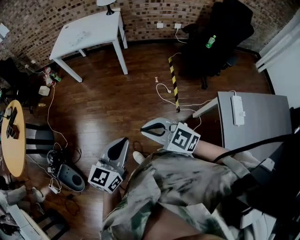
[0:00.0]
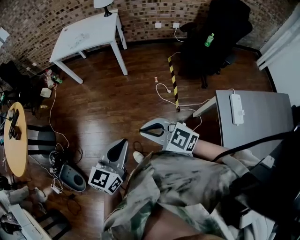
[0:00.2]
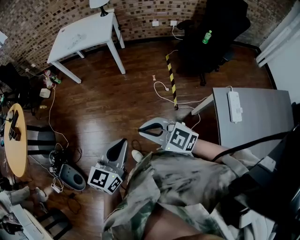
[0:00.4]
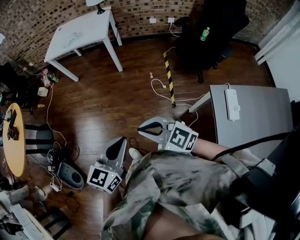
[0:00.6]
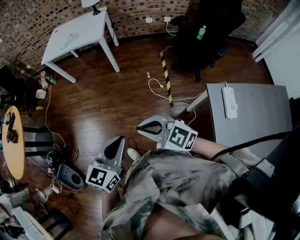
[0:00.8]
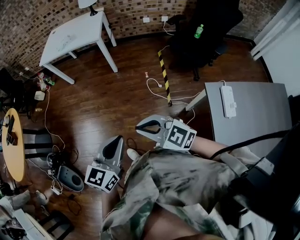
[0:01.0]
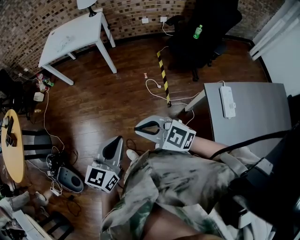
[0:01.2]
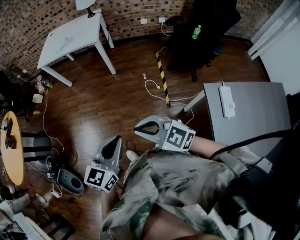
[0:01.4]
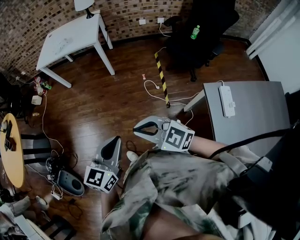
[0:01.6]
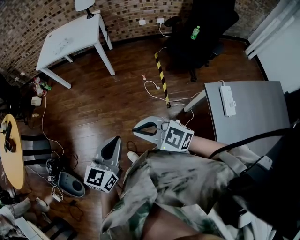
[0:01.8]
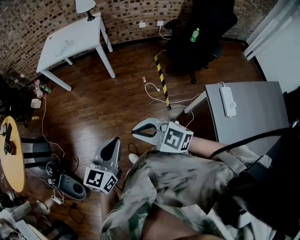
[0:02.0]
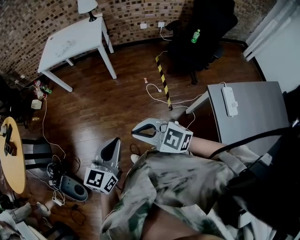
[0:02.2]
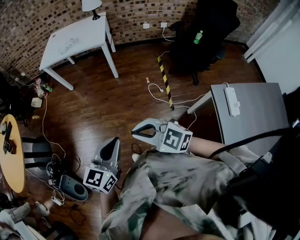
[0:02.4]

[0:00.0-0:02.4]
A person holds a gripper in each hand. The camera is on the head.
0:00.0 to 0:01.2: Both grippers move to the right, some 10 cm.
0:01.2 to 0:02.4: Both grippers travel together to the left, roughly 10 cm.

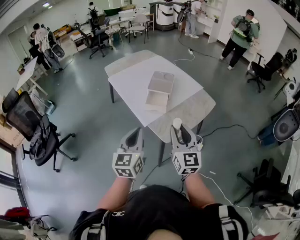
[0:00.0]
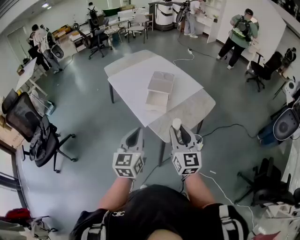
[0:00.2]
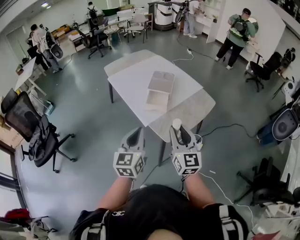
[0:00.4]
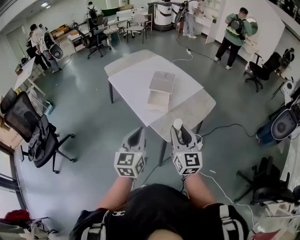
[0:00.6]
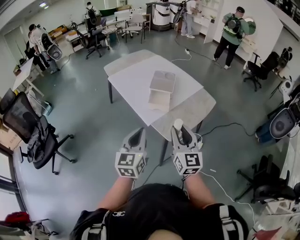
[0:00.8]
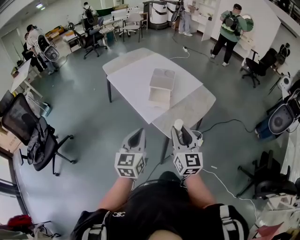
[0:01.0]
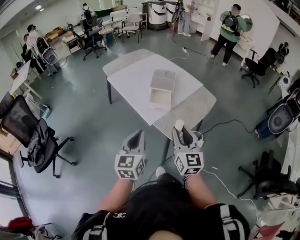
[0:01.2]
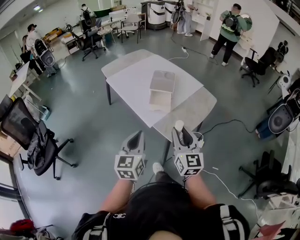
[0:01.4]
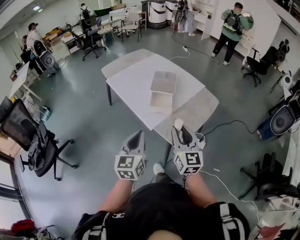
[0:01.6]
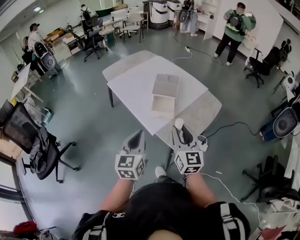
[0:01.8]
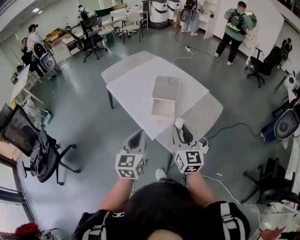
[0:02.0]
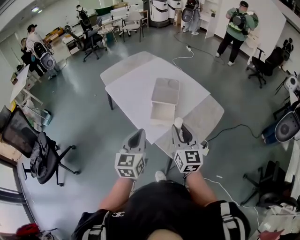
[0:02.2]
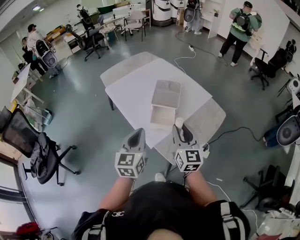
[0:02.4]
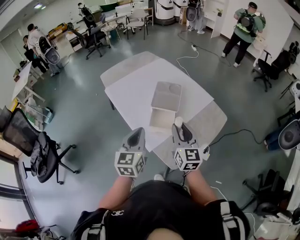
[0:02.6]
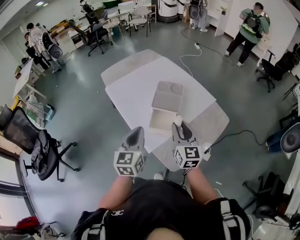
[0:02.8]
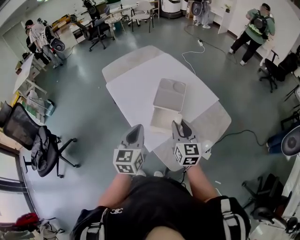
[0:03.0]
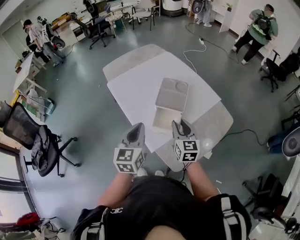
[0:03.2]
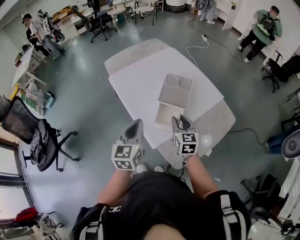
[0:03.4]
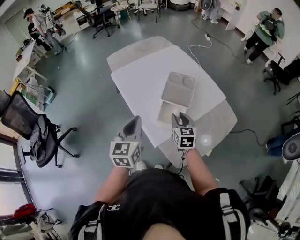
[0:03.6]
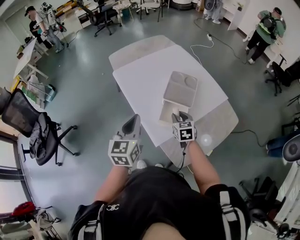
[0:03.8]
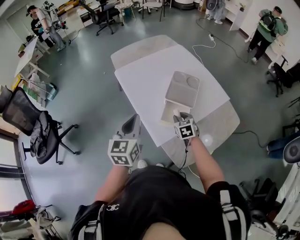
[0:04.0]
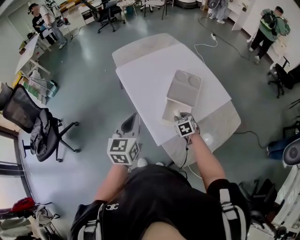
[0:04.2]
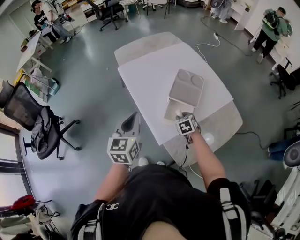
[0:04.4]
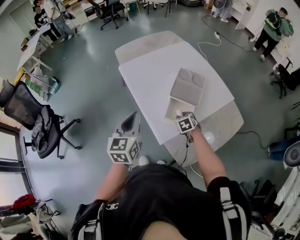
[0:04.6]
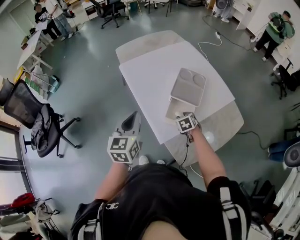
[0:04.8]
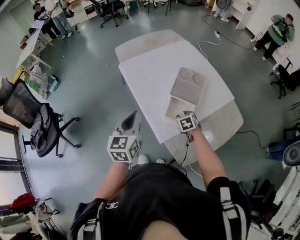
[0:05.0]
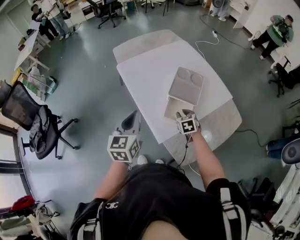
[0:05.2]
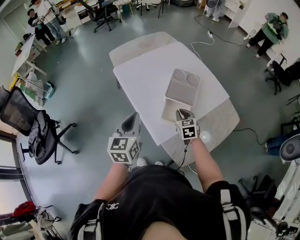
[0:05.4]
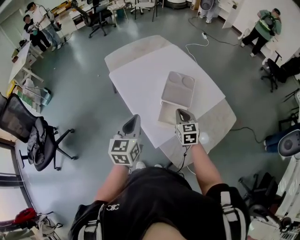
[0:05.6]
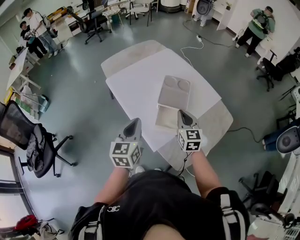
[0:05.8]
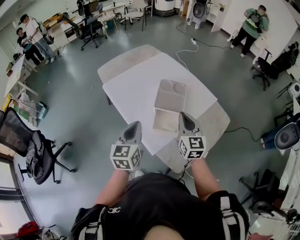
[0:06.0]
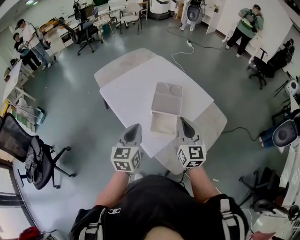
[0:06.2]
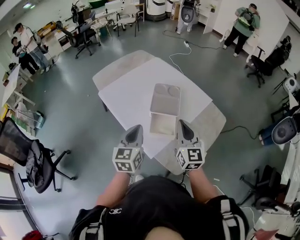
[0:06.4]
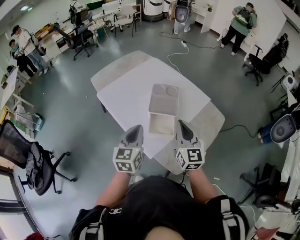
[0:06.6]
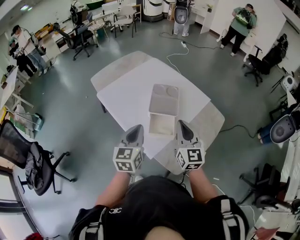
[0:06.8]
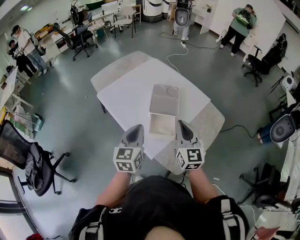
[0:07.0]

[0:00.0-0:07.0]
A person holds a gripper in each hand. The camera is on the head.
0:00.0 to 0:01.4: The two grippers go roughly 5 cm to the left.
0:01.4 to 0:02.8: The two grippers go approximately 25 cm forward.
0:02.8 to 0:04.2: The left gripper goes about 10 cm to the left. Meanwhile the right gripper is displaced downward and forward by some 25 cm, and angles its fingers downward, by roughly 40 degrees.
0:04.2 to 0:05.6: The right gripper shifts about 10 cm upward, rotates approximately 30 degrees, and closes its fingers.
0:05.6 to 0:07.0: The right gripper heads upward and backward, covering approximately 15 cm, and changes its angle by about 30 degrees, while the left gripper shifts approximately 5 cm to the right.

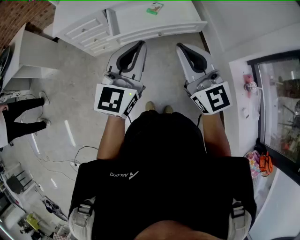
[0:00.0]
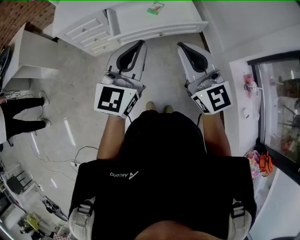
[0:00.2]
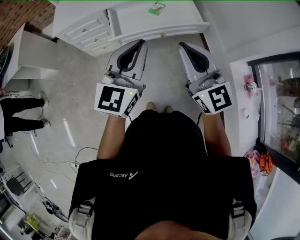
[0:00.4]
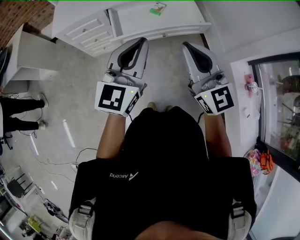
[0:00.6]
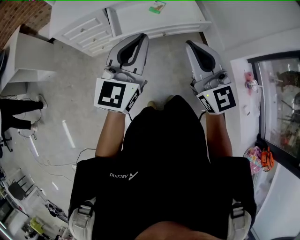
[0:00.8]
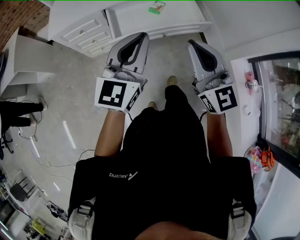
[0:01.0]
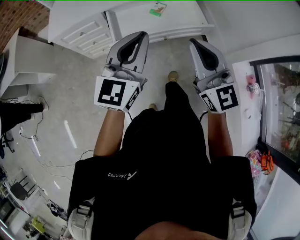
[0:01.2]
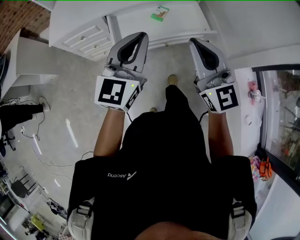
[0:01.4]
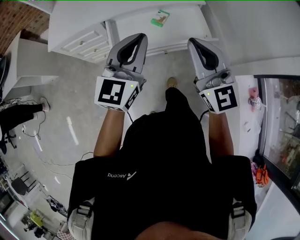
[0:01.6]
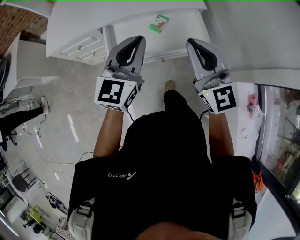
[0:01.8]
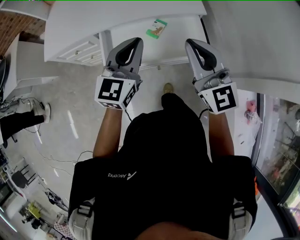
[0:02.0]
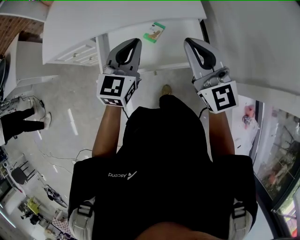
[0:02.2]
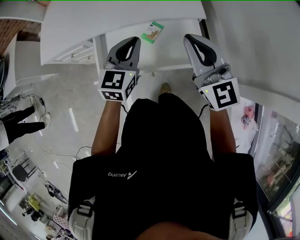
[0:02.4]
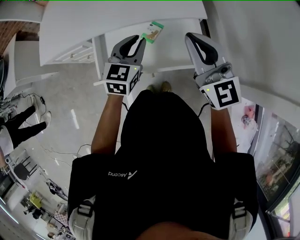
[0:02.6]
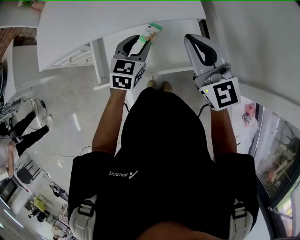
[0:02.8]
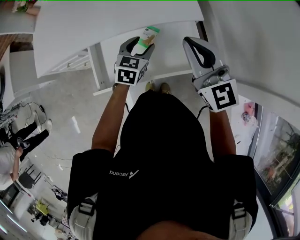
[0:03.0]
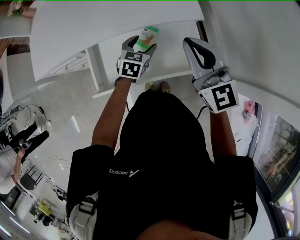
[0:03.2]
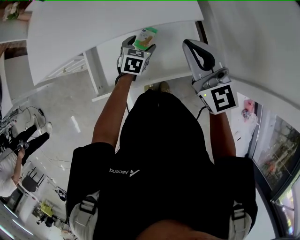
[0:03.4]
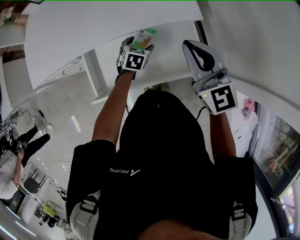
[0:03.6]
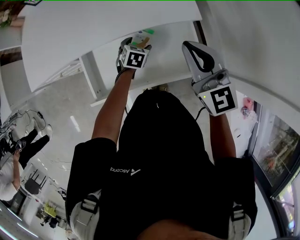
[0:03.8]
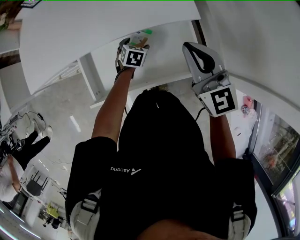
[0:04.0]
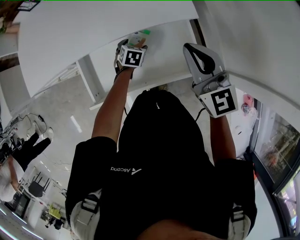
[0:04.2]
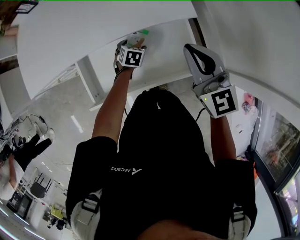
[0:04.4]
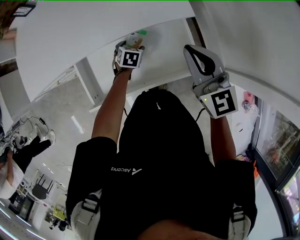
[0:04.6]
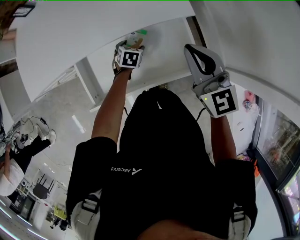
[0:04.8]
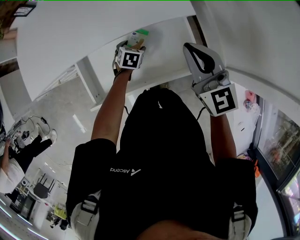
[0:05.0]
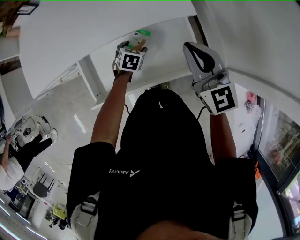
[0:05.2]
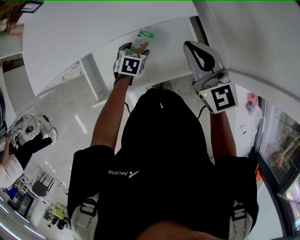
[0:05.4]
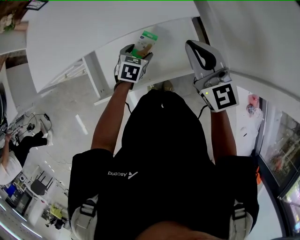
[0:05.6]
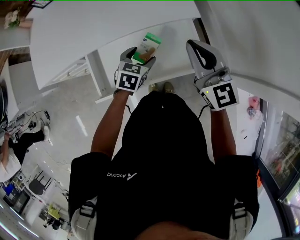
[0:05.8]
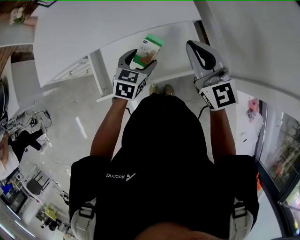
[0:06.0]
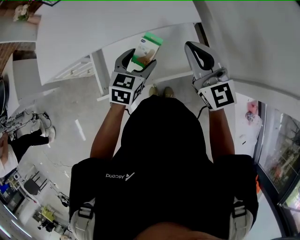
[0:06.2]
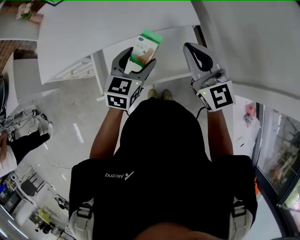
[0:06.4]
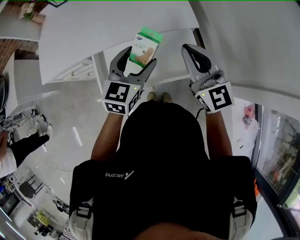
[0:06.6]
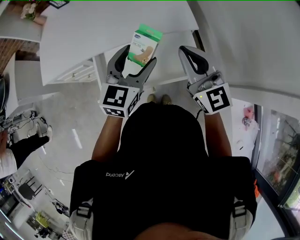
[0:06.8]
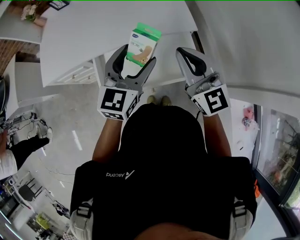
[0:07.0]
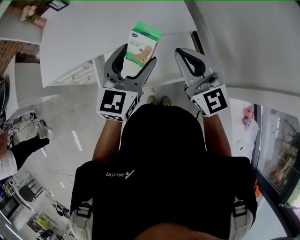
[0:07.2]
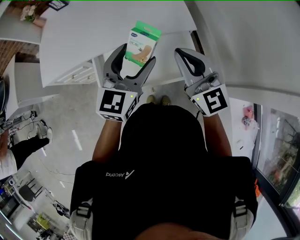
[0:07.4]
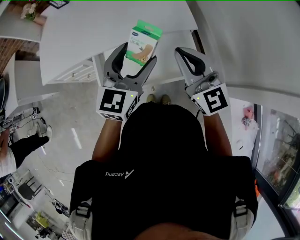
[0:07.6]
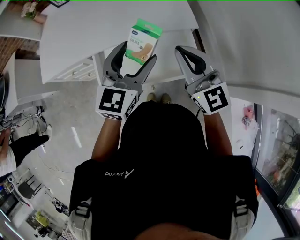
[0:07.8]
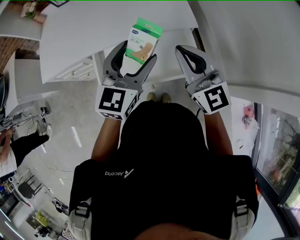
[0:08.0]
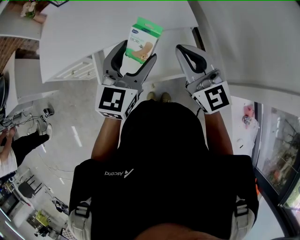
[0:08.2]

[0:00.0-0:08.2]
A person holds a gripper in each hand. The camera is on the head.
0:00.0 to 0:01.6: The grippers both shift forward by roughly 20 cm.
0:01.6 to 0:03.2: The right gripper shifts about 25 cm forward. Meanwhile the left gripper moves downward and forward, about 40 cm, angles its fingers downward, by some 40 degrees, and opens its fingers.
0:03.2 to 0:05.0: The right gripper shifts some 5 cm downward; the left gripper travels downward by some 15 cm, and changes its angle by about 20 degrees.
0:05.0 to 0:06.6: The right gripper heads upward and backward, covering approximately 10 cm. Meanwhile the left gripper heads upward, covering approximately 35 cm, and angles its fingers upward, by roughly 40 degrees.
0:06.6 to 0:08.2: The left gripper travels upward by about 5 cm.

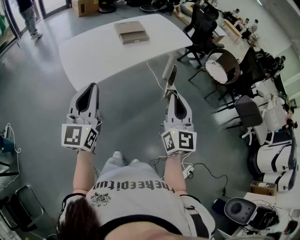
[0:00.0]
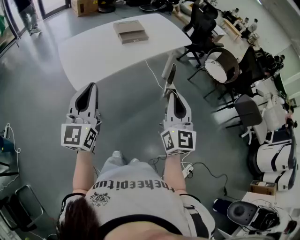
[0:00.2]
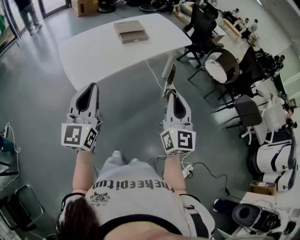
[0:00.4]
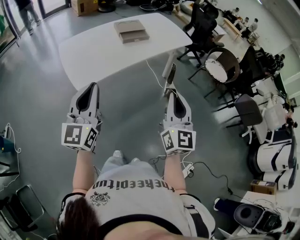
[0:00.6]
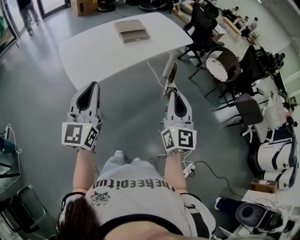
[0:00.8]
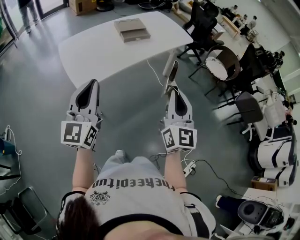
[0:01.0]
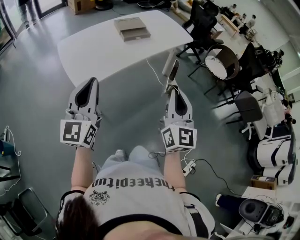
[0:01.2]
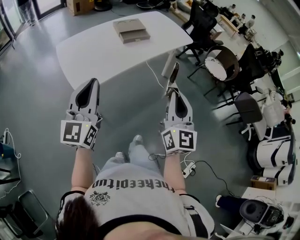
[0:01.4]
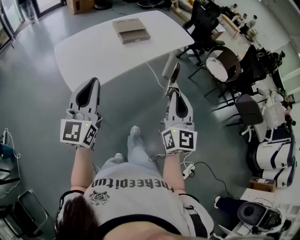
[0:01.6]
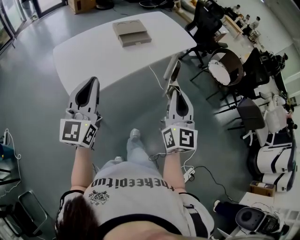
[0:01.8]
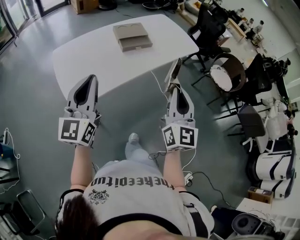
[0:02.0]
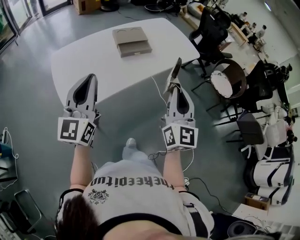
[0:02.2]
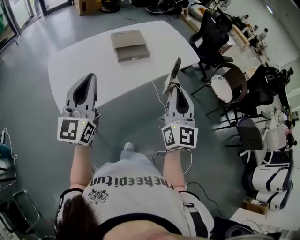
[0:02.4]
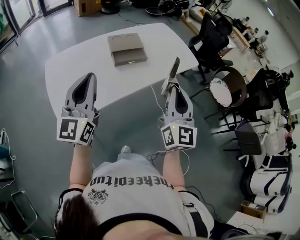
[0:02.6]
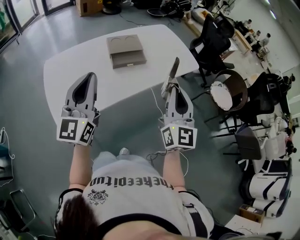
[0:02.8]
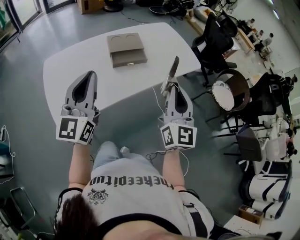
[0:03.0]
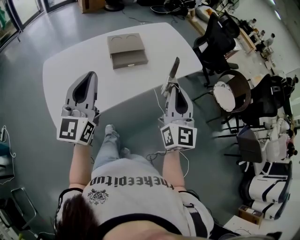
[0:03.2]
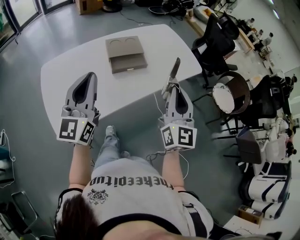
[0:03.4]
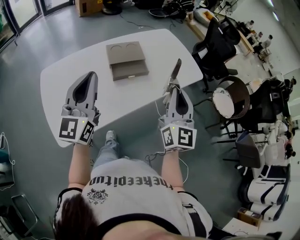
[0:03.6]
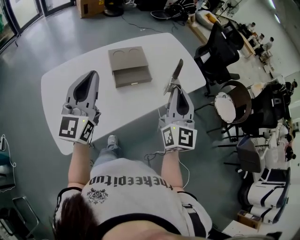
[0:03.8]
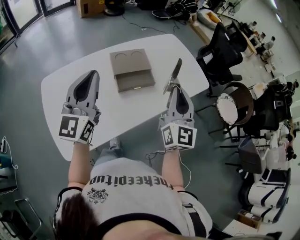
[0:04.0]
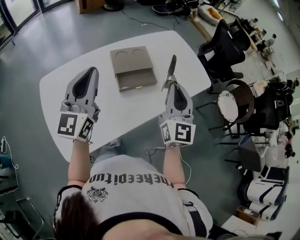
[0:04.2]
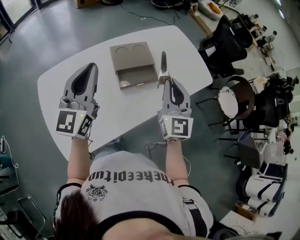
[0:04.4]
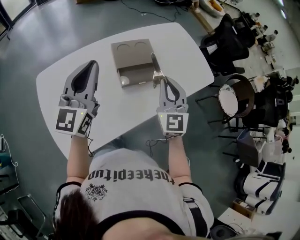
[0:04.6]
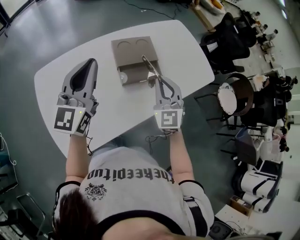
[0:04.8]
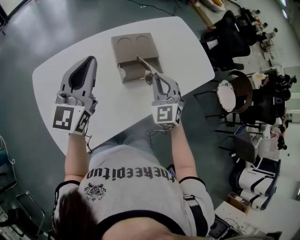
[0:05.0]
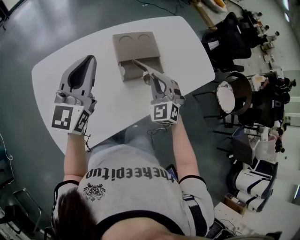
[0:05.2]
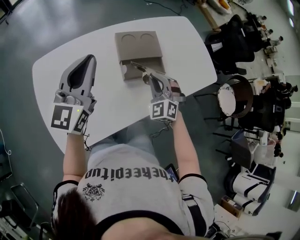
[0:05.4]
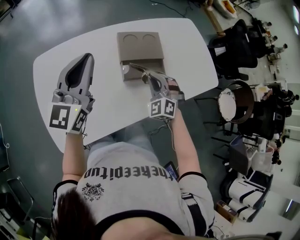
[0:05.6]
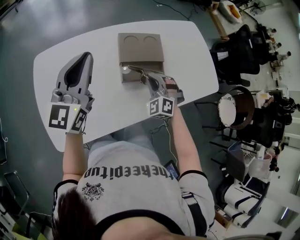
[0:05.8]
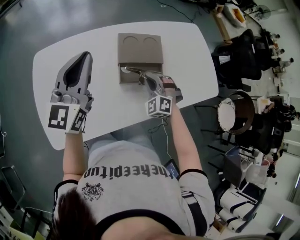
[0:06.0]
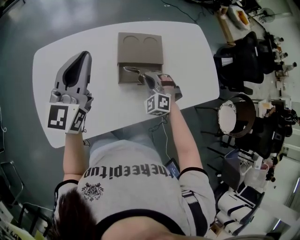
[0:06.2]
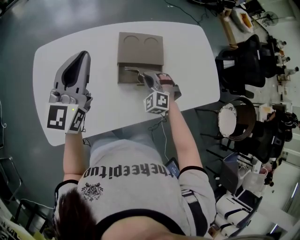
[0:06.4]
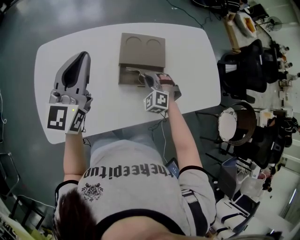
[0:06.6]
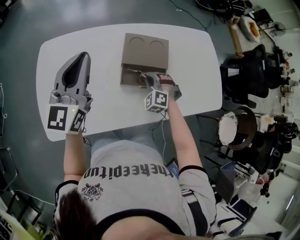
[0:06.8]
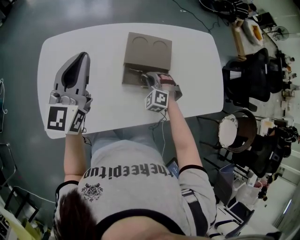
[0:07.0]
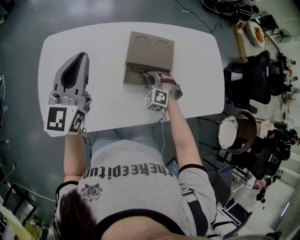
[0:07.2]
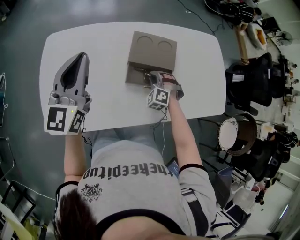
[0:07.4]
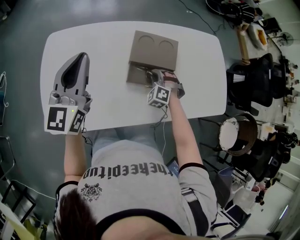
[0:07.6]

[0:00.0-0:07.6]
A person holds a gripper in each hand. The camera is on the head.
0:00.0 to 0:01.6: Both grippers travel together forward, roughly 5 cm.
0:01.6 to 0:03.0: Both grippers travel together forward, some 30 cm.
0:03.0 to 0:04.6: The grippers both shift forward and to the left by some 30 cm. The right gripper swivels about 30 degrees.
0:04.6 to 0:06.0: The left gripper changes place by about 5 cm. Meanwhile the right gripper shifts some 20 cm downward and forward, and tips its fingers downward by roughly 30 degrees.
0:06.0 to 0:07.6: The right gripper shifts about 10 cm downward.
